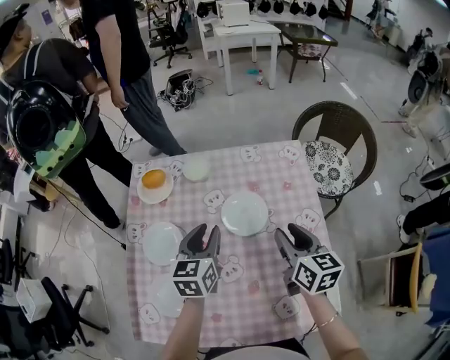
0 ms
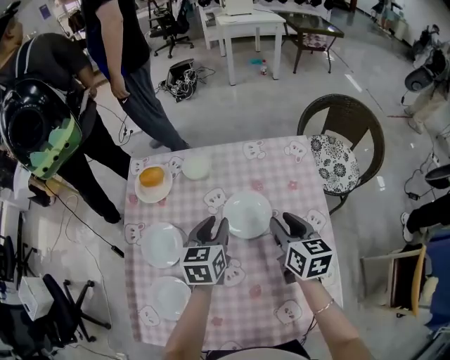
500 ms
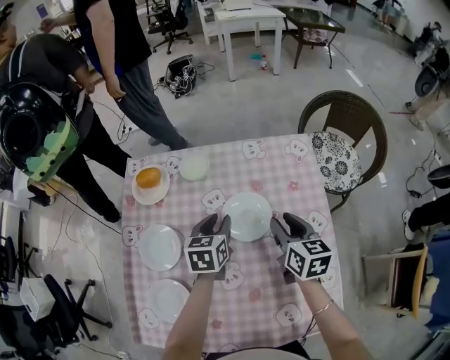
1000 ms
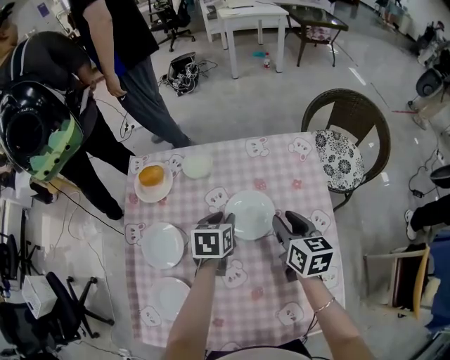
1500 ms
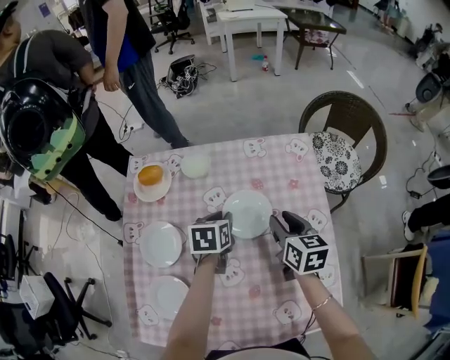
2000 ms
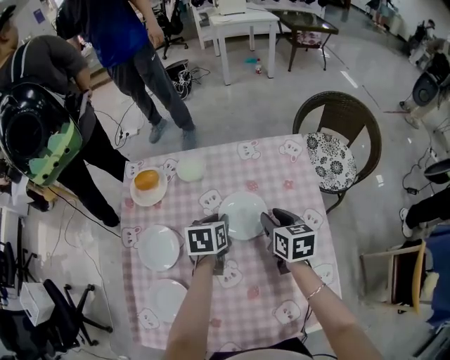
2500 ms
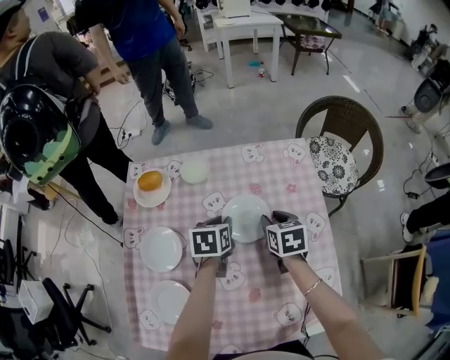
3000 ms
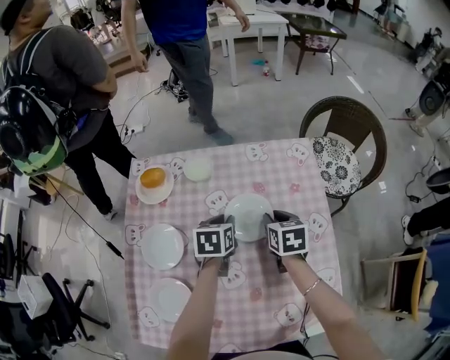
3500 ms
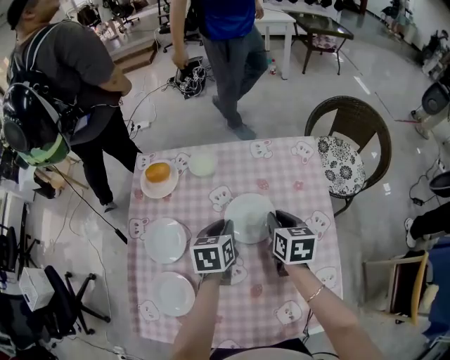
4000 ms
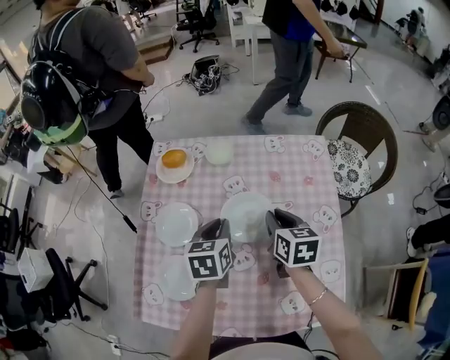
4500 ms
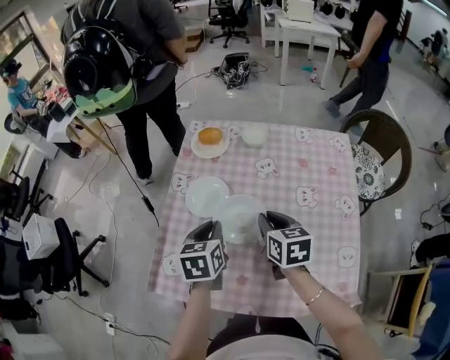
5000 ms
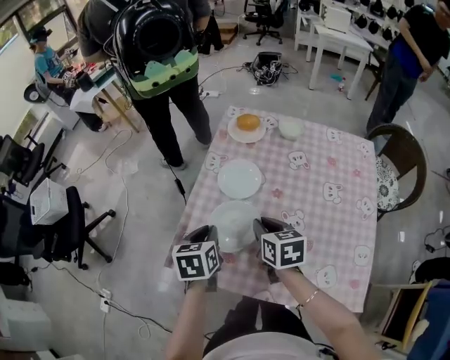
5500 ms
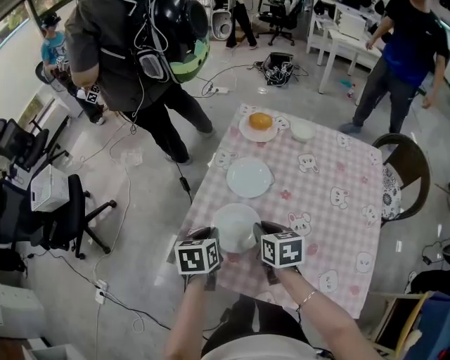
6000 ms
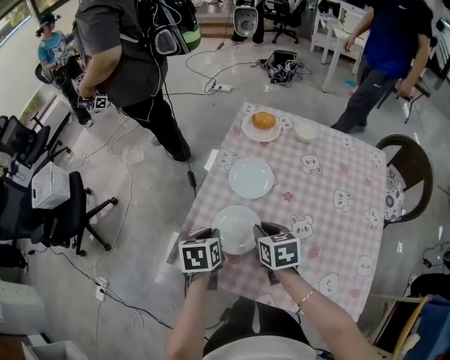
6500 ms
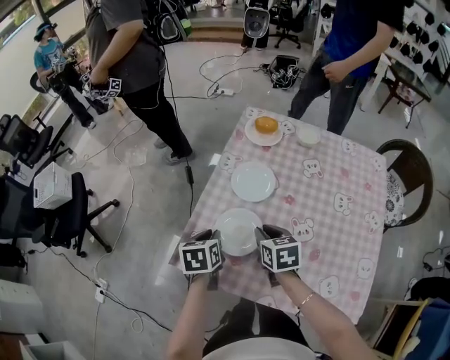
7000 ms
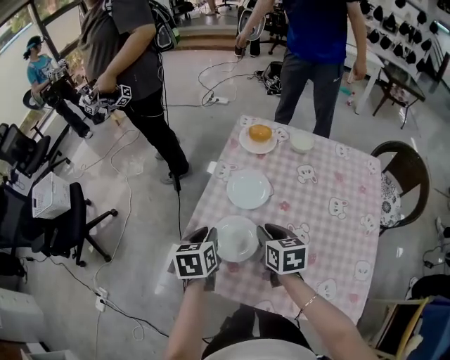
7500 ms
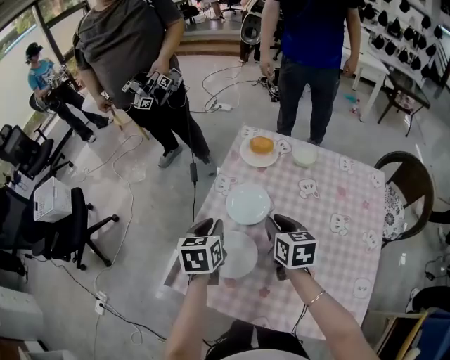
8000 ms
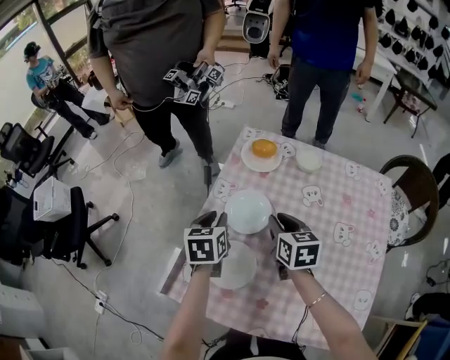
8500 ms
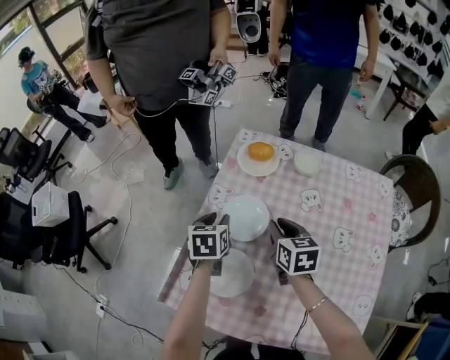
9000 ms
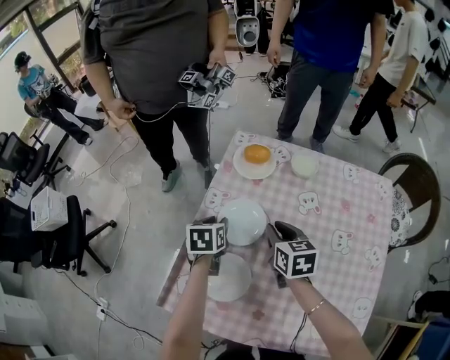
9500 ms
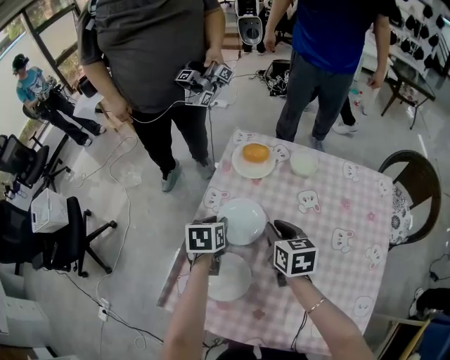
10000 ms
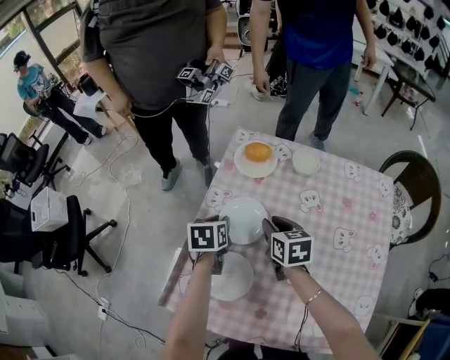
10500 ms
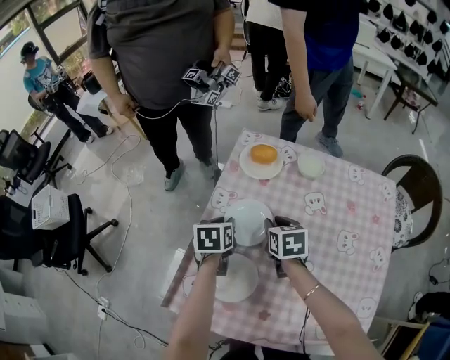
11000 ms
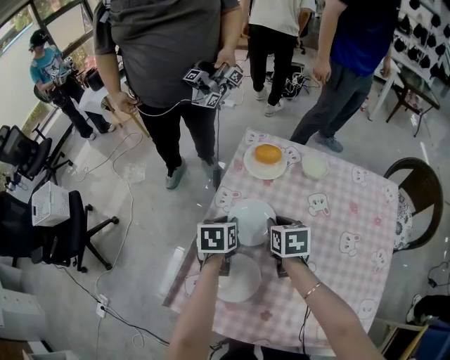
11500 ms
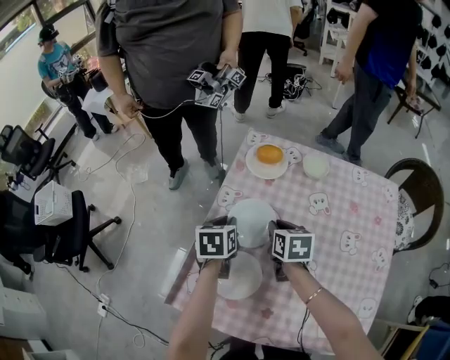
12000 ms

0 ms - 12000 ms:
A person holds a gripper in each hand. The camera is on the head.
0 ms - 2000 ms: The left gripper travels downward and forward by some 10 cm, and swivels roughly 30 degrees; the right gripper shifts some 10 cm forward and downward.
2000 ms - 4000 ms: The grippers make only small movements.
4000 ms - 6000 ms: The right gripper shifts by some 40 cm, and rotates about 30 degrees. Meanwhile the left gripper shifts by roughly 40 cm, and turns by some 30 degrees.
6000 ms - 8000 ms: The right gripper travels forward and to the right by roughly 10 cm, while the left gripper is displaced forward and upward by roughly 10 cm.
8000 ms - 10000 ms: The left gripper is displaced forward and downward by some 15 cm; the right gripper goes about 5 cm forward.
10000 ms - 12000 ms: The grippers move only a little.

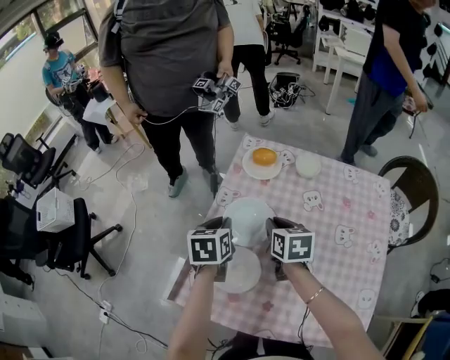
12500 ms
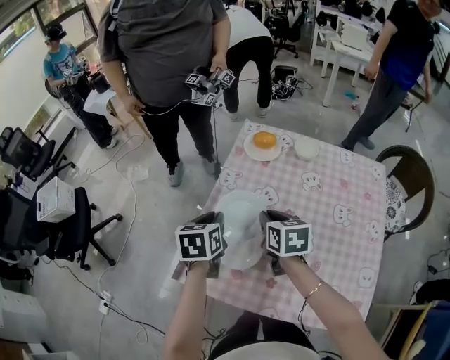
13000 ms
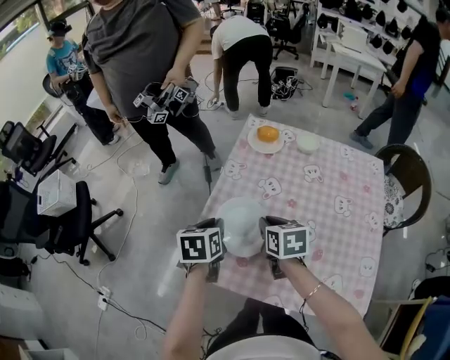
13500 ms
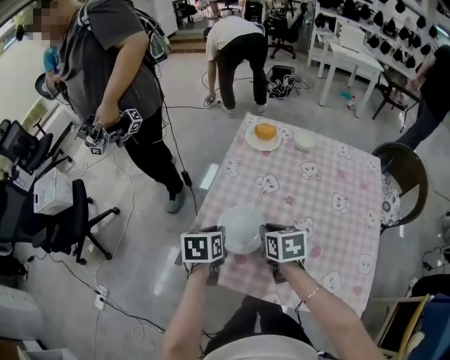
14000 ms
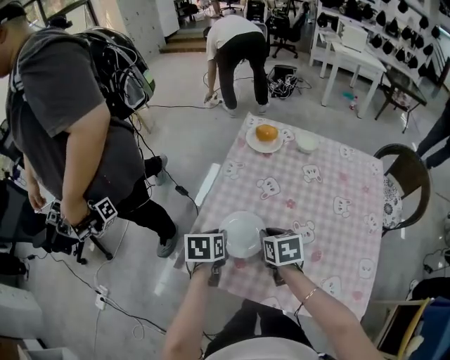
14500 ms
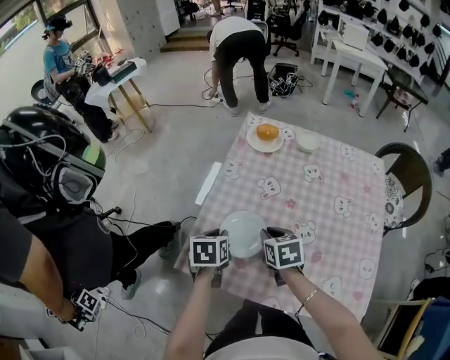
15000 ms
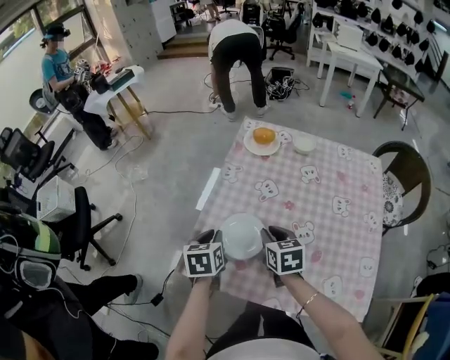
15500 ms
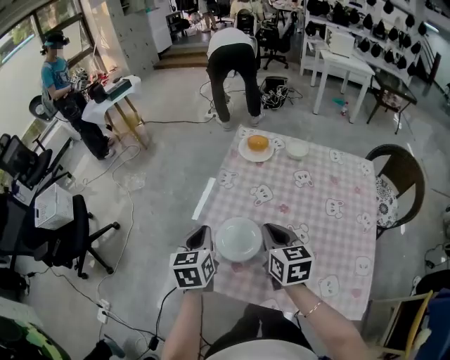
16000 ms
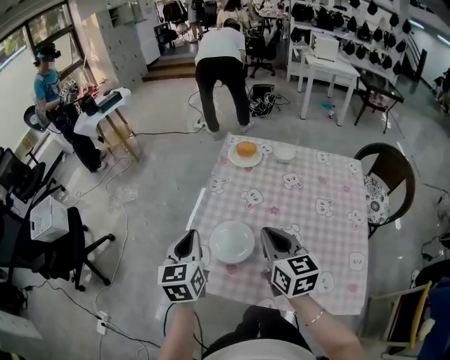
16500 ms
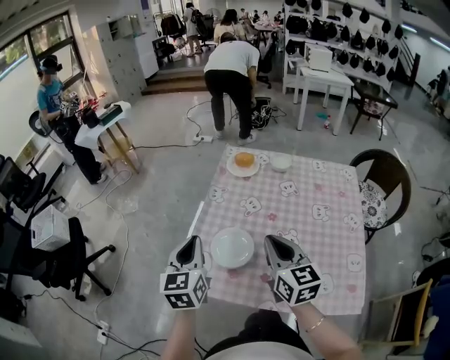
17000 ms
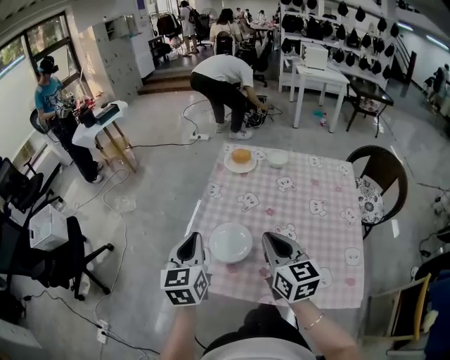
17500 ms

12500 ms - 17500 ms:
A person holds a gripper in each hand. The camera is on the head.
12500 ms - 15000 ms: The right gripper travels backward and to the left by about 15 cm. The left gripper travels backward, downward and to the left by about 15 cm.
15000 ms - 17500 ms: The left gripper travels upward by some 15 cm, and angles its fingers upward, by roughly 40 degrees. Meanwhile the right gripper shifts approximately 20 cm upward and backward, and points its fingers some 40 degrees further upward.

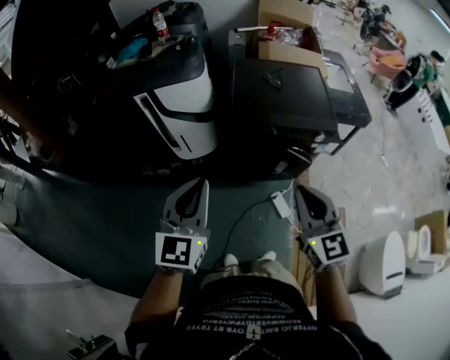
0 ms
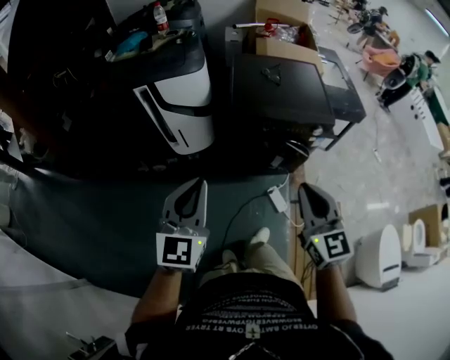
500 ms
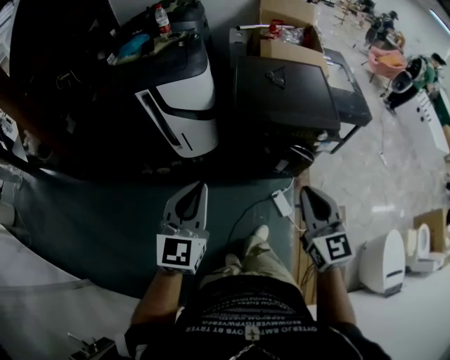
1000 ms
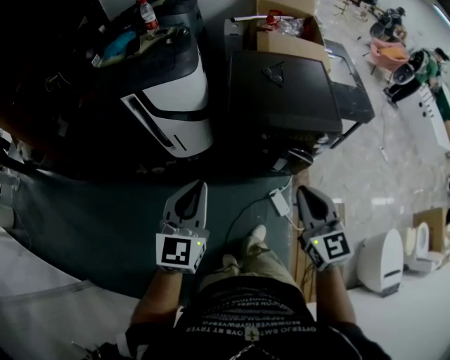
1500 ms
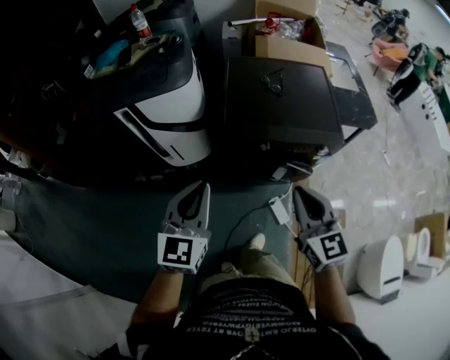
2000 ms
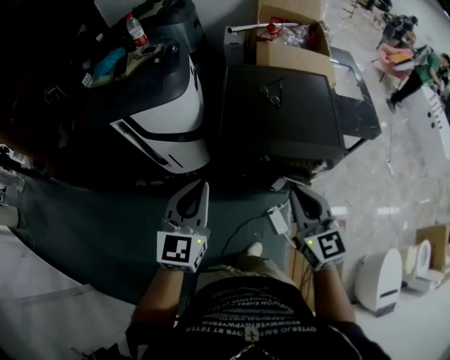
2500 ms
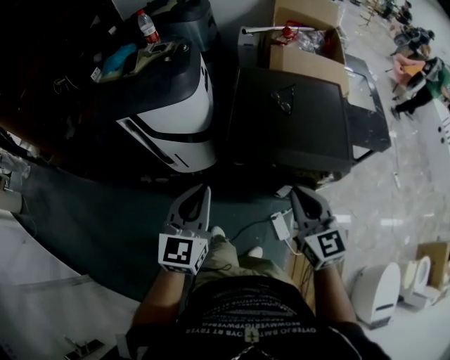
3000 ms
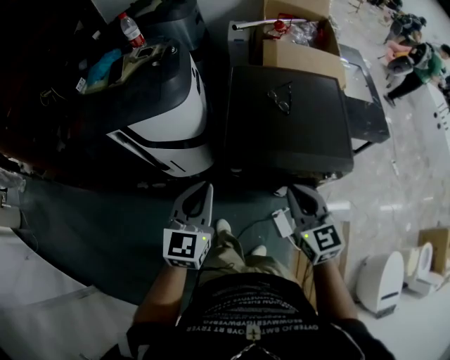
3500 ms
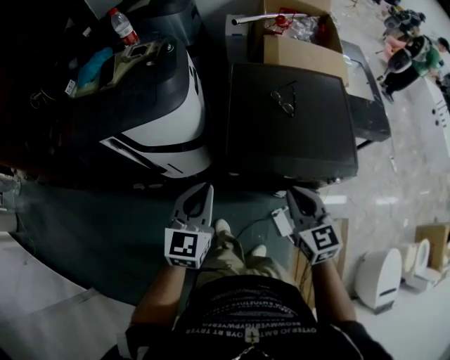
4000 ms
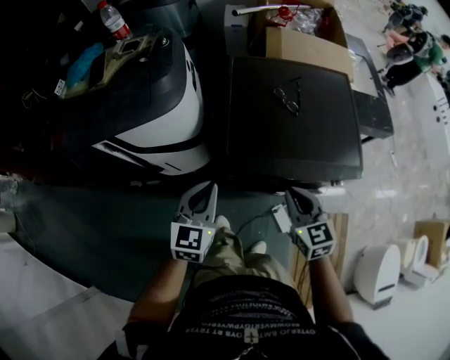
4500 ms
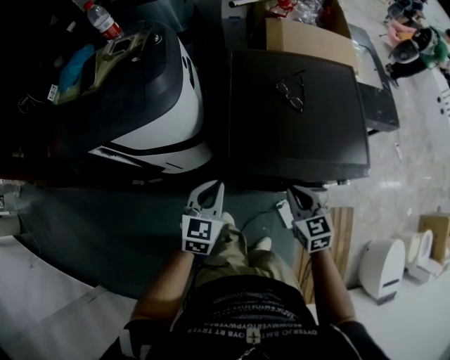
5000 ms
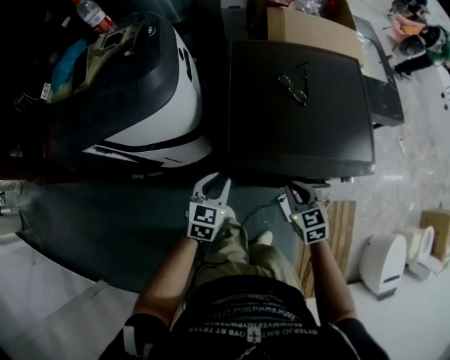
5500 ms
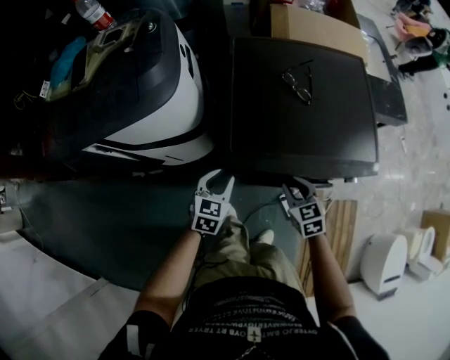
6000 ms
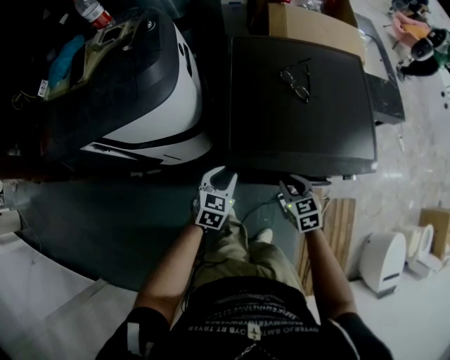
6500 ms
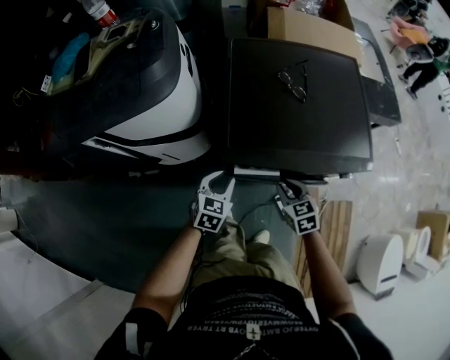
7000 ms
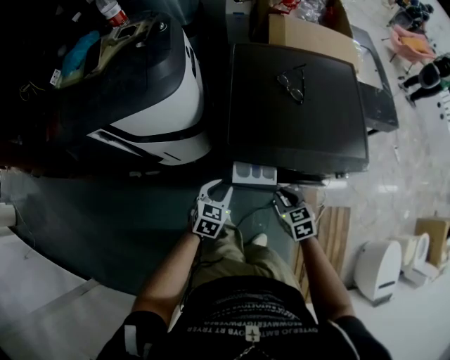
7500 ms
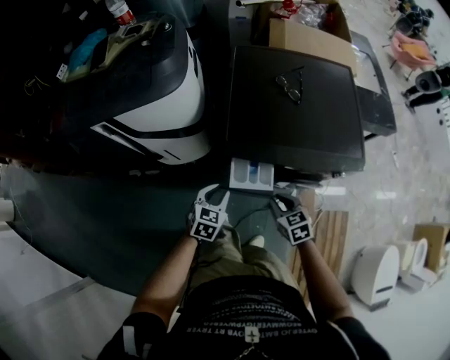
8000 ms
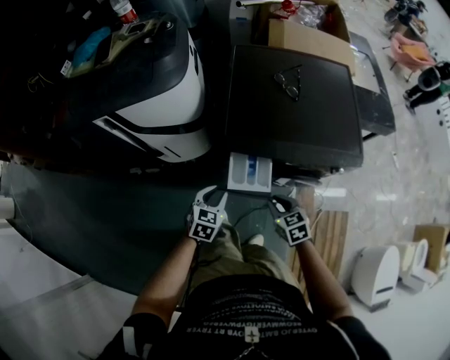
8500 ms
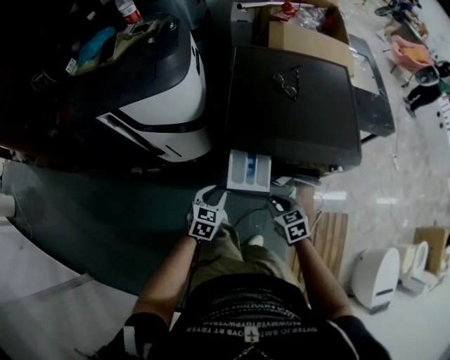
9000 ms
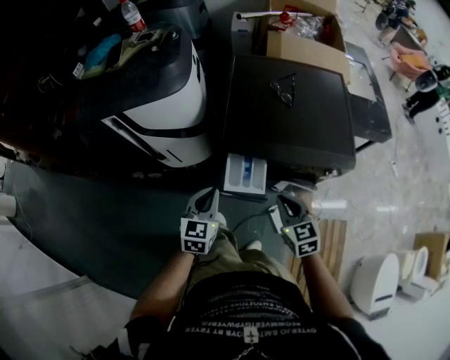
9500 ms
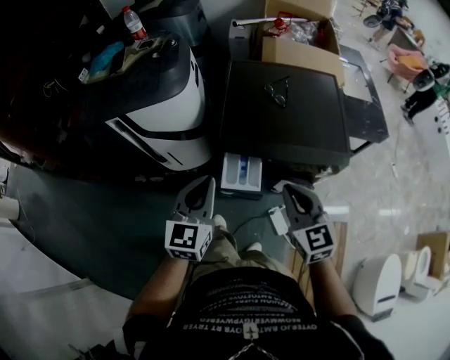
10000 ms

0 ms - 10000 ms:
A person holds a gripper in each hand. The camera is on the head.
0 ms - 2000 ms: The grippers both shift forward by approximately 15 cm.
2000 ms - 4000 ms: The two grippers go roughly 20 cm forward and downward.
4000 ms - 6000 ms: Both grippers travel together downward, approximately 25 cm. The right gripper turns by approximately 20 degrees; the left gripper rotates approximately 20 degrees, and opens.
6000 ms - 8000 ms: The two grippers go roughly 10 cm backward.
8000 ms - 10000 ms: The two grippers go some 30 cm upward. The right gripper rotates roughly 30 degrees. Meanwhile the left gripper tips its fingers upward by about 30 degrees, and closes.
